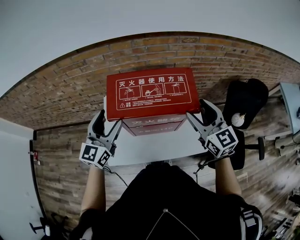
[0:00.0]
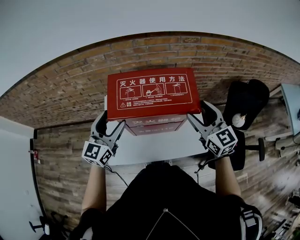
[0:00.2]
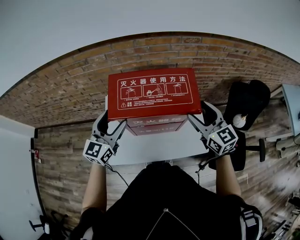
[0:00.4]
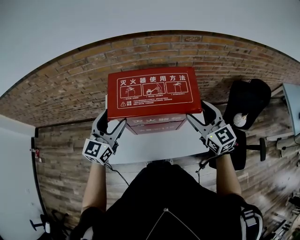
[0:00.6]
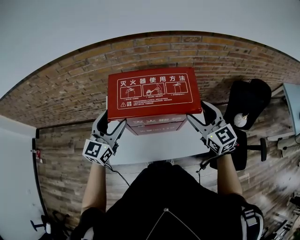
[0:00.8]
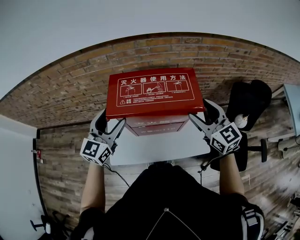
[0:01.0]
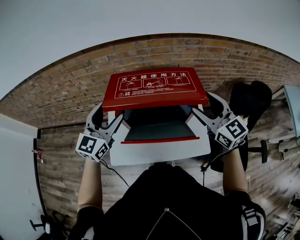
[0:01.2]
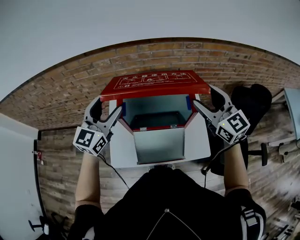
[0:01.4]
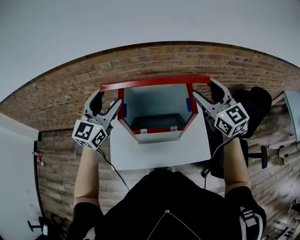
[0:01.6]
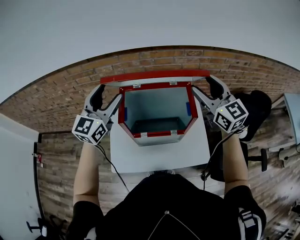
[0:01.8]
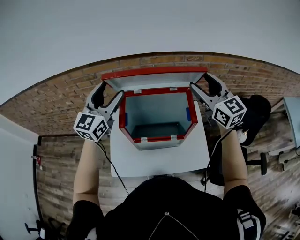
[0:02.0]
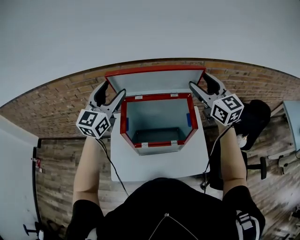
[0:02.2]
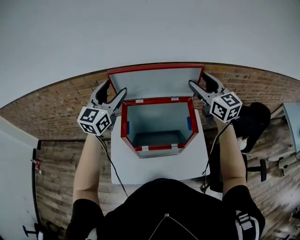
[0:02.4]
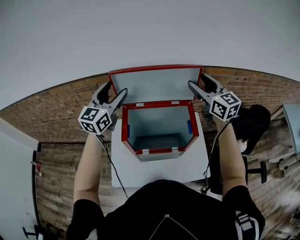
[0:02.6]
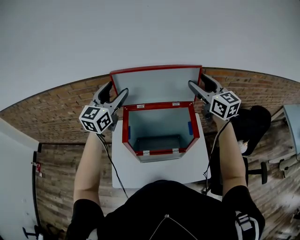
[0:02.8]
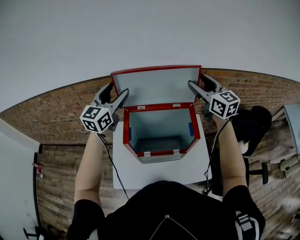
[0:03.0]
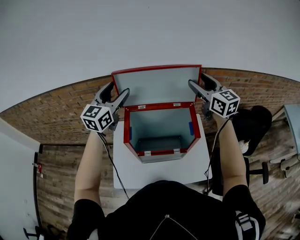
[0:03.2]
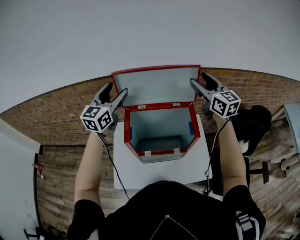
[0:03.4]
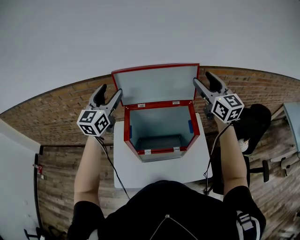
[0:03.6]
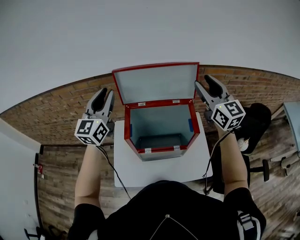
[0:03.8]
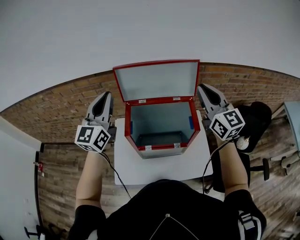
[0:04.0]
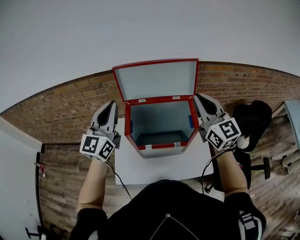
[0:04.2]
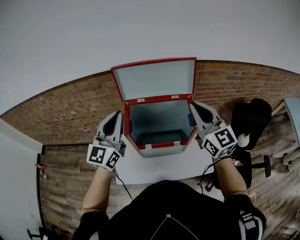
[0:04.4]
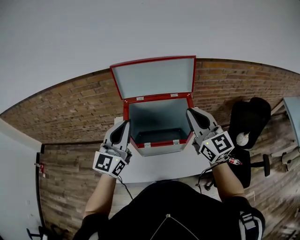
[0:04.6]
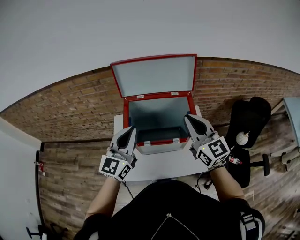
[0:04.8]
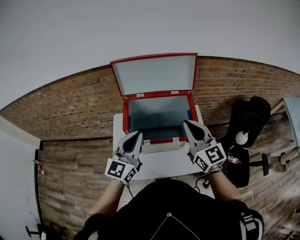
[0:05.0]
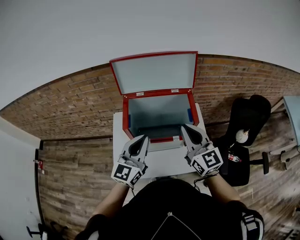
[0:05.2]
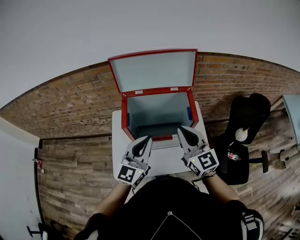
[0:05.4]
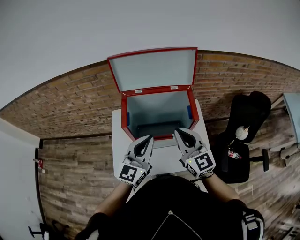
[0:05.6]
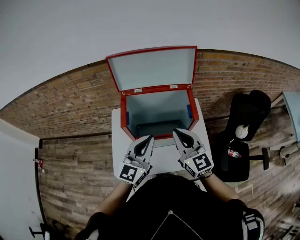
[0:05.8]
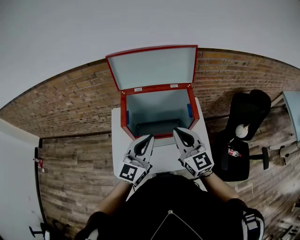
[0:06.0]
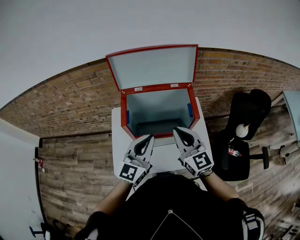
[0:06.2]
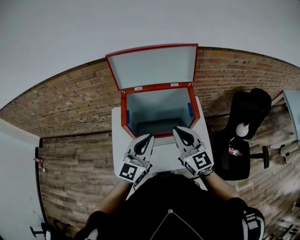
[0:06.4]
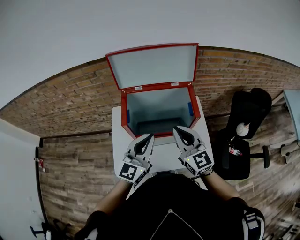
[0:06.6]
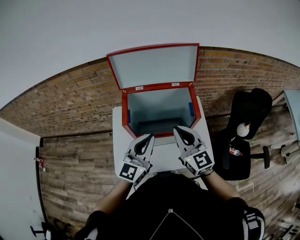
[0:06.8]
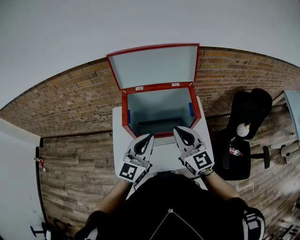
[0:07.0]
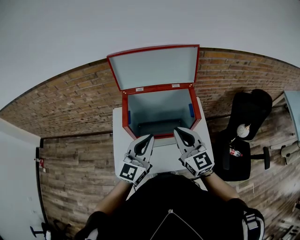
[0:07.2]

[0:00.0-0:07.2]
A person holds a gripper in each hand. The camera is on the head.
0.0 to 1.4 s: The grippers both shift upward by approximately 5 cm.
1.4 to 2.8 s: The right gripper shifts about 15 cm forward. Meanwhile the left gripper shifts about 15 cm forward and upward.
2.8 to 4.4 s: Both grippers move backward, some 15 cm. The left gripper closes, while the right gripper closes up.
4.4 to 5.8 s: The right gripper is displaced downward, backward and to the left by approximately 15 cm. Meanwhile the left gripper shifts some 20 cm downward, to the right and backward.
5.8 to 7.2 s: Neither gripper changes place.

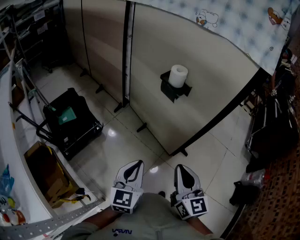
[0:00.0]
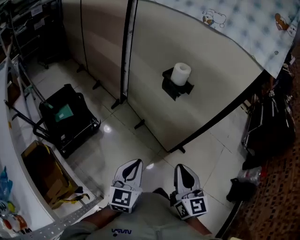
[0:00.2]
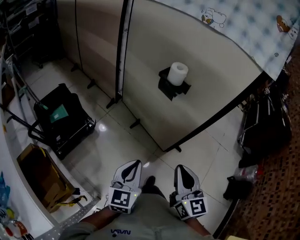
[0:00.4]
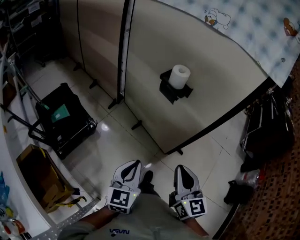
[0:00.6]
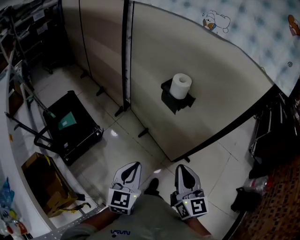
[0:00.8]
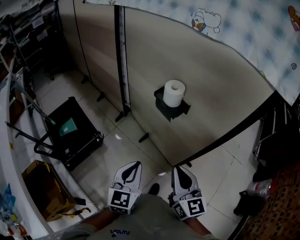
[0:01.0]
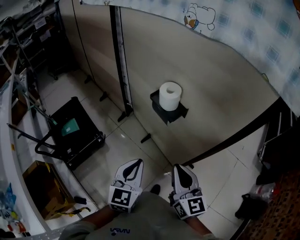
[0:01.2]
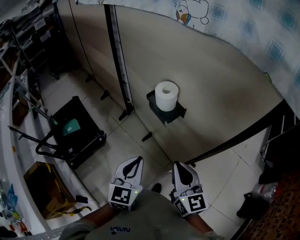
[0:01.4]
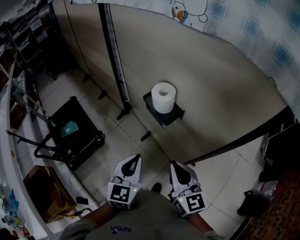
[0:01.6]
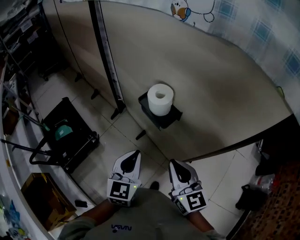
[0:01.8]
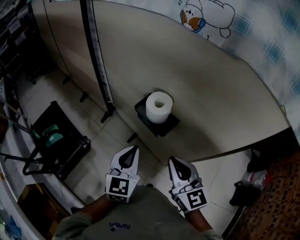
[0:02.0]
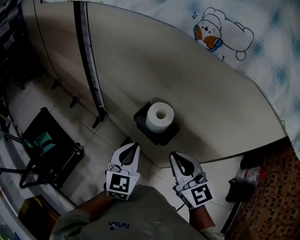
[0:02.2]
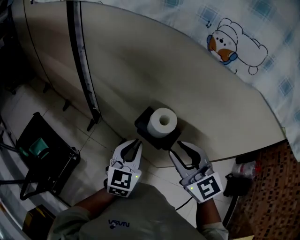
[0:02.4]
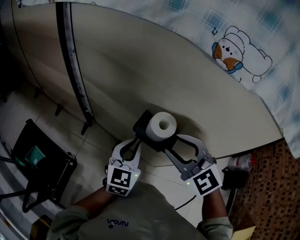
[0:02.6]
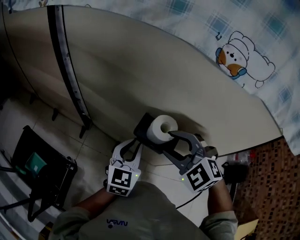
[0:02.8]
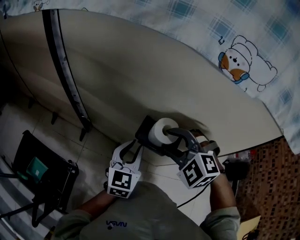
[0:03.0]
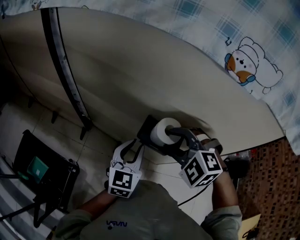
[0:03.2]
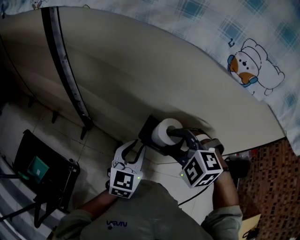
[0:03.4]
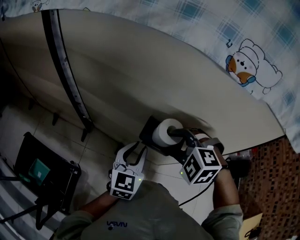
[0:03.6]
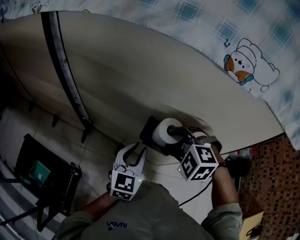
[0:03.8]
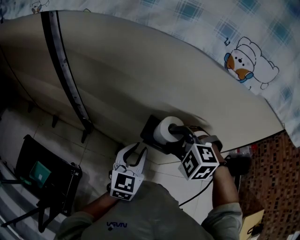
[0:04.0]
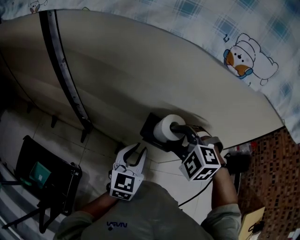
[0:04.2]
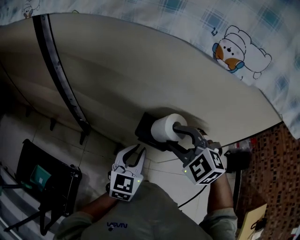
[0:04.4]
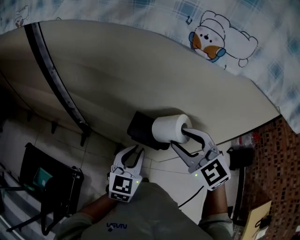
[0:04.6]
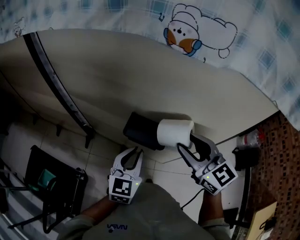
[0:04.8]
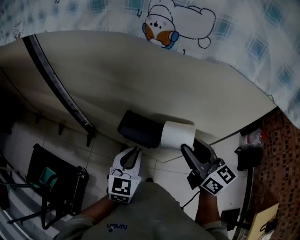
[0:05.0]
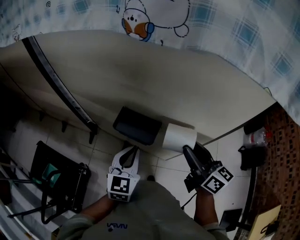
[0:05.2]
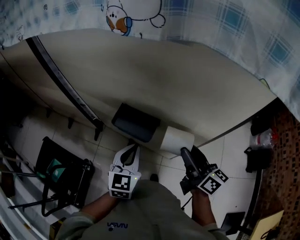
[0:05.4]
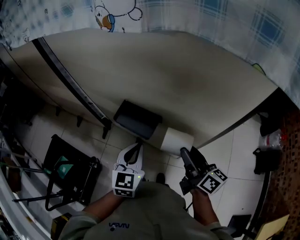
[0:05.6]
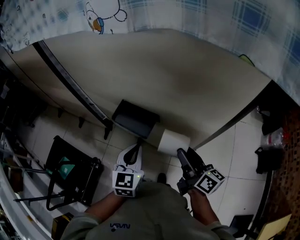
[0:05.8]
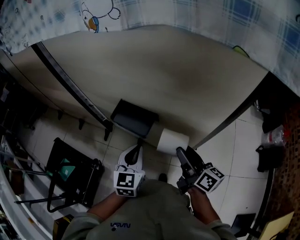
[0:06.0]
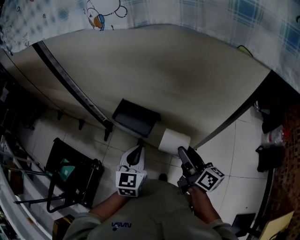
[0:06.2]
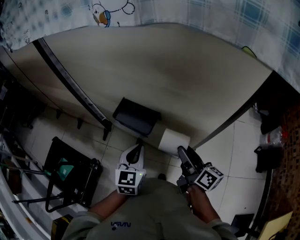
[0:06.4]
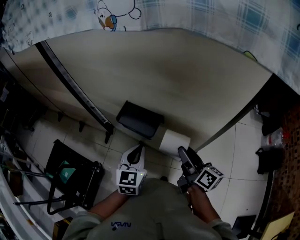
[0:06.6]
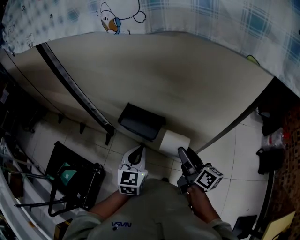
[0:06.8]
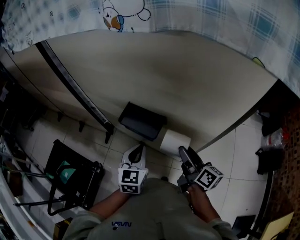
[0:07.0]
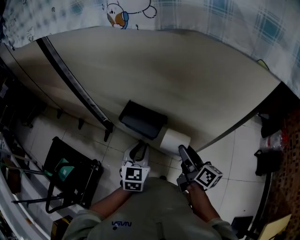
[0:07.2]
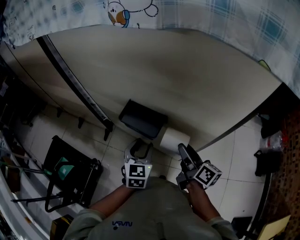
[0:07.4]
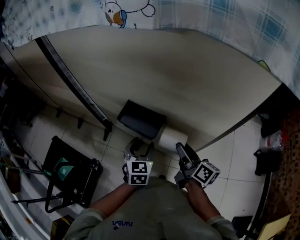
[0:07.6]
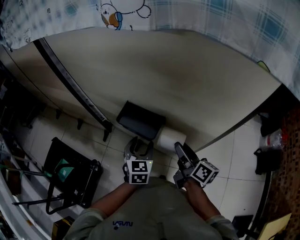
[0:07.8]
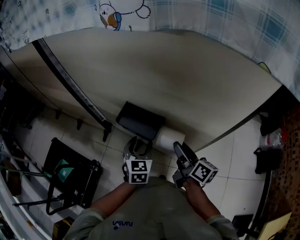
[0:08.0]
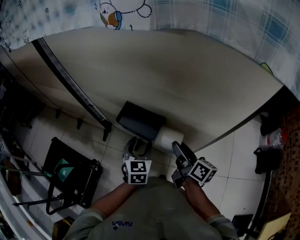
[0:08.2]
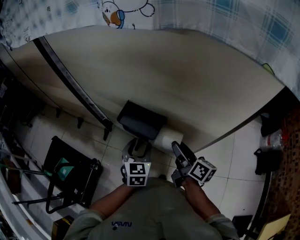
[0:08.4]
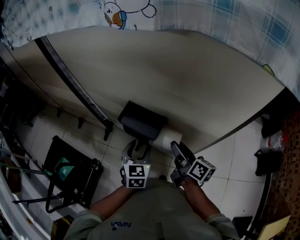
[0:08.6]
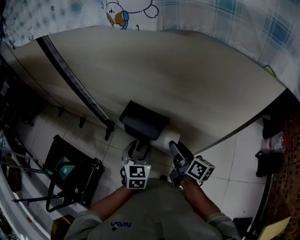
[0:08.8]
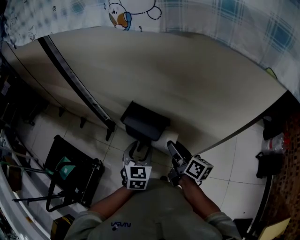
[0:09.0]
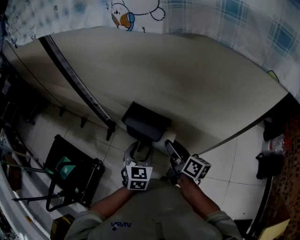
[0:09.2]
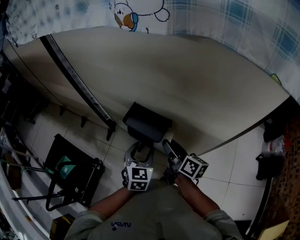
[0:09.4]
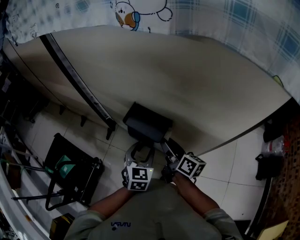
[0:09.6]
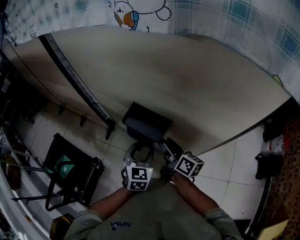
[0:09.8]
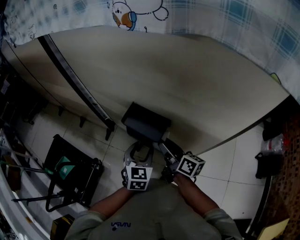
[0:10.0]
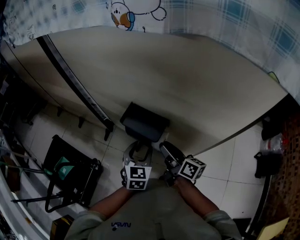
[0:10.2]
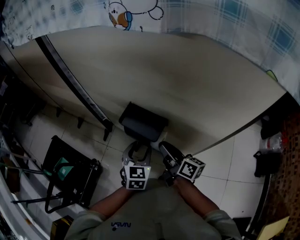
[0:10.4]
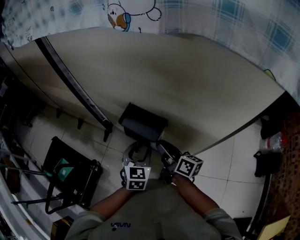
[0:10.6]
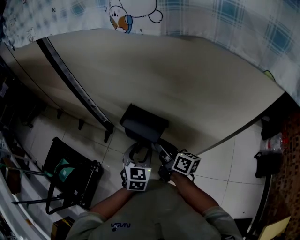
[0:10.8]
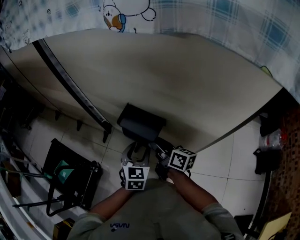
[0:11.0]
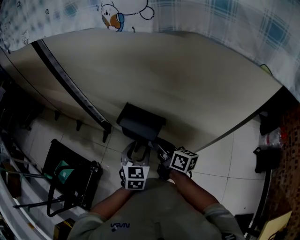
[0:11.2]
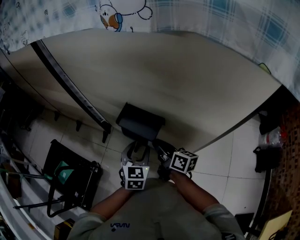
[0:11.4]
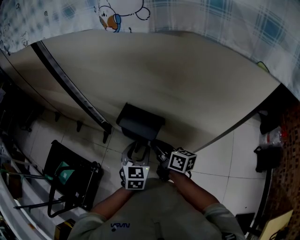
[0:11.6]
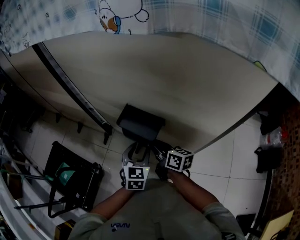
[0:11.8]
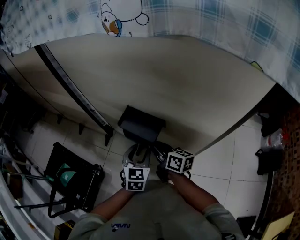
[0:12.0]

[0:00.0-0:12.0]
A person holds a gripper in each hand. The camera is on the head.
0.0 to 1.6 s: Both grippers move forward, about 25 cm.
1.6 to 3.0 s: The left gripper heads forward, covering about 20 cm, and turns by approximately 30 degrees, while the right gripper shifts roughly 25 cm forward and to the left, angles its fingers downward, by approximately 40 degrees, and opens up.
3.0 to 4.4 s: There are only small adjustments of the grippers.
4.4 to 6.0 s: The left gripper moves to the right and backward, some 10 cm, while the right gripper heads to the right, downward and backward, covering approximately 25 cm, and rotates around the line of its fingers by roughly 90 degrees, clockwise from behind.
6.0 to 7.6 s: The left gripper shifts about 5 cm downward, and opens. Meanwhile the right gripper moves some 5 cm.
7.6 to 9.0 s: The right gripper ends up roughly 5 cm from where it was.
9.0 to 10.4 s: The right gripper closes its fingers.
10.4 to 12.0 s: There are only small adjustments of the grippers.

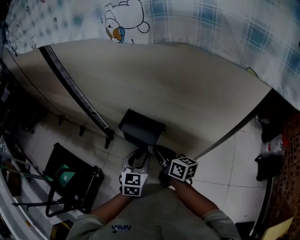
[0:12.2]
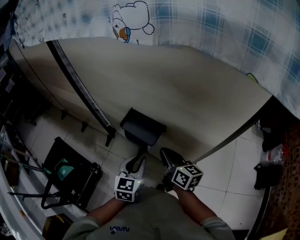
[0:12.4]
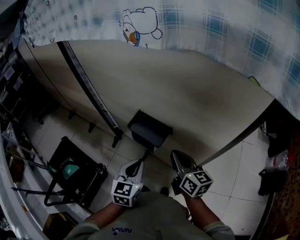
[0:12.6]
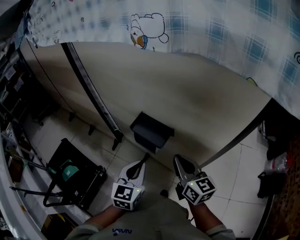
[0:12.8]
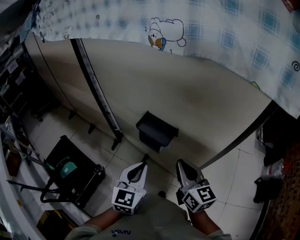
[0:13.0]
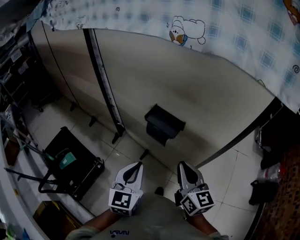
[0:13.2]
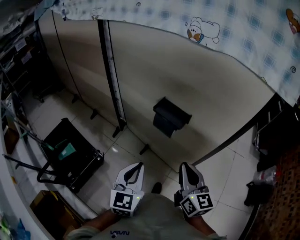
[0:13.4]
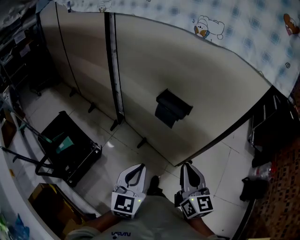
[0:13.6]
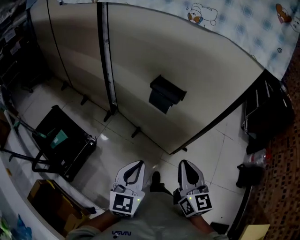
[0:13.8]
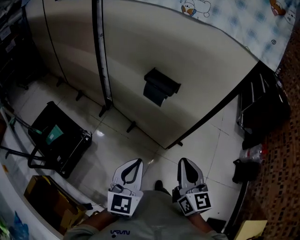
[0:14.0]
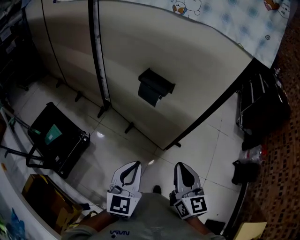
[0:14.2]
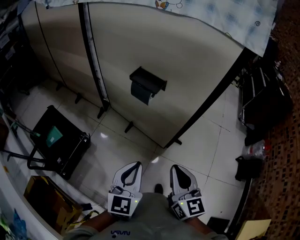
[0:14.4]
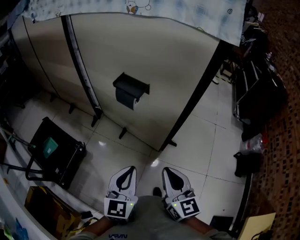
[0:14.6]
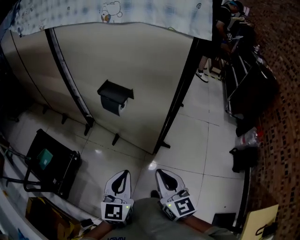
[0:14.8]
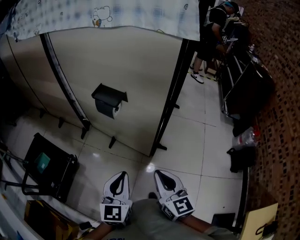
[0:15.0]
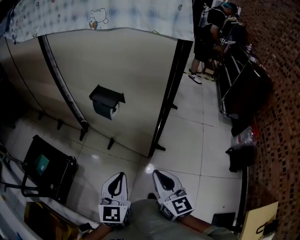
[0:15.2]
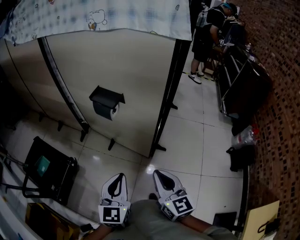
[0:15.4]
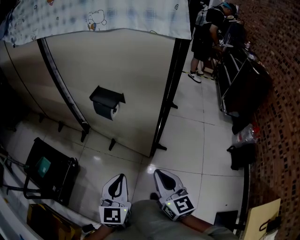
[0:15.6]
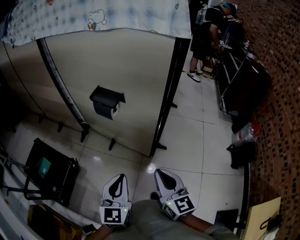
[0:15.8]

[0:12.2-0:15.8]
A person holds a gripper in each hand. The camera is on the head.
12.2 to 14.0 s: The left gripper shifts some 35 cm backward and upward, rotates roughly 20 degrees, and closes its fingers, while the right gripper moves backward, roughly 35 cm, and changes its angle by roughly 40 degrees.
14.0 to 15.8 s: Both grippers travel together to the right, approximately 15 cm.

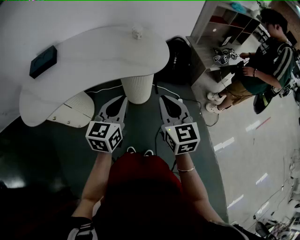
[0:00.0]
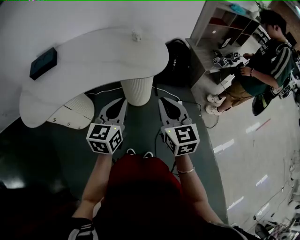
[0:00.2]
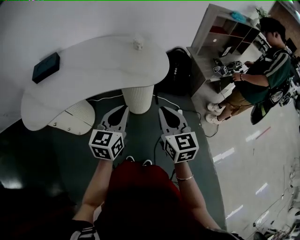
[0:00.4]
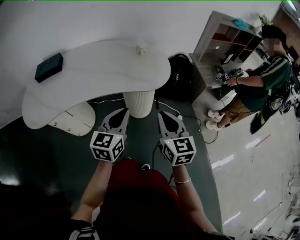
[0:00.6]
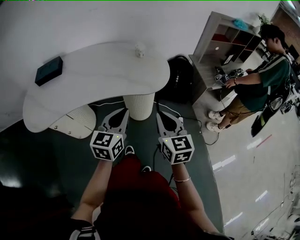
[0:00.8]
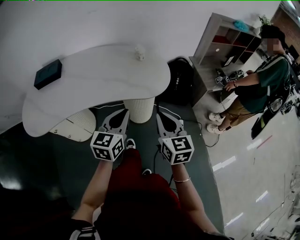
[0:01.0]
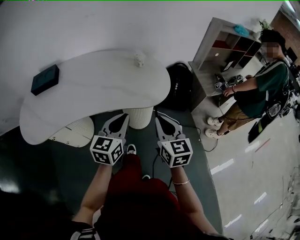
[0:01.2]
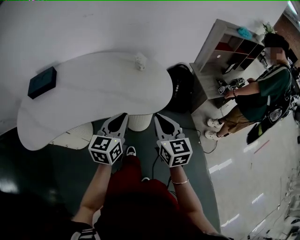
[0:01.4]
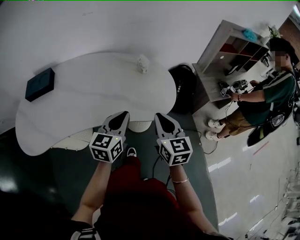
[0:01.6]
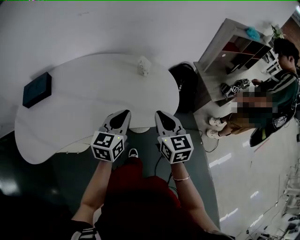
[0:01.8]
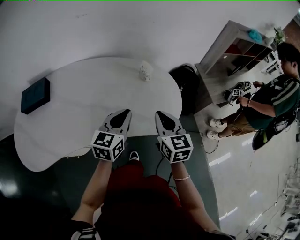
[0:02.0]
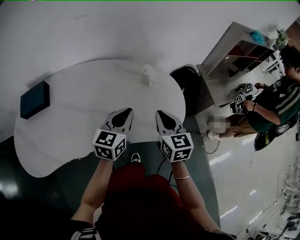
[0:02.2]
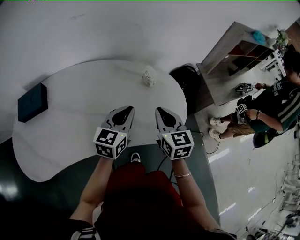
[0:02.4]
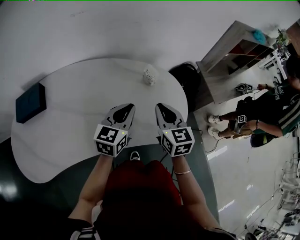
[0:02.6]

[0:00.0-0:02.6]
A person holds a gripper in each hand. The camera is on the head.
0.0 to 1.2 s: The grippers both shift forward by about 10 cm.
1.2 to 2.6 s: Both grippers travel together forward, roughly 25 cm.
